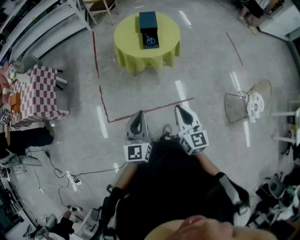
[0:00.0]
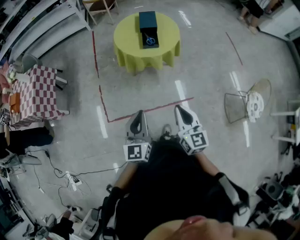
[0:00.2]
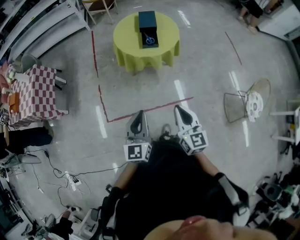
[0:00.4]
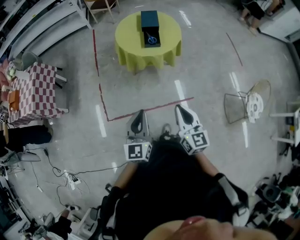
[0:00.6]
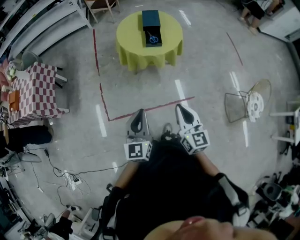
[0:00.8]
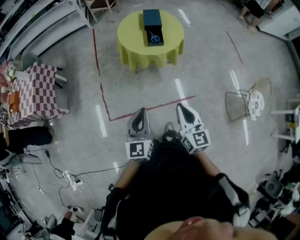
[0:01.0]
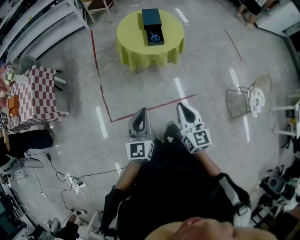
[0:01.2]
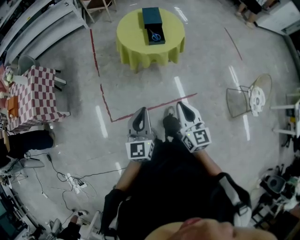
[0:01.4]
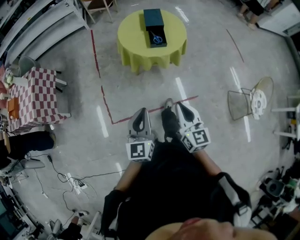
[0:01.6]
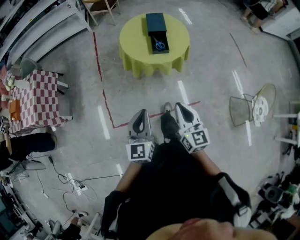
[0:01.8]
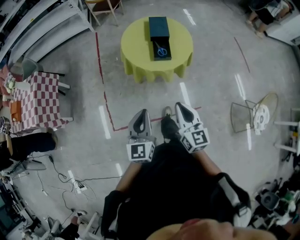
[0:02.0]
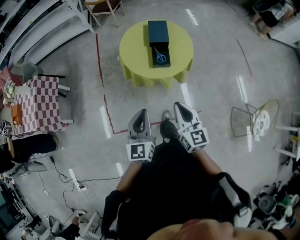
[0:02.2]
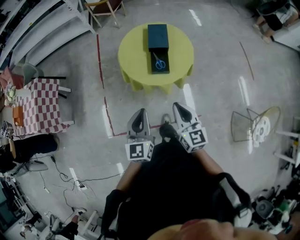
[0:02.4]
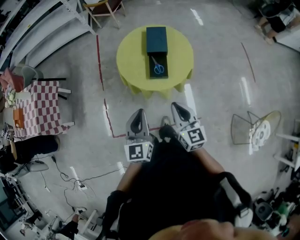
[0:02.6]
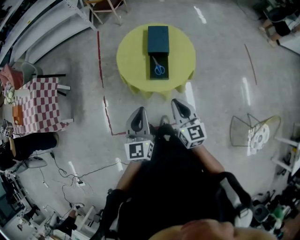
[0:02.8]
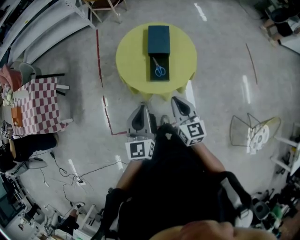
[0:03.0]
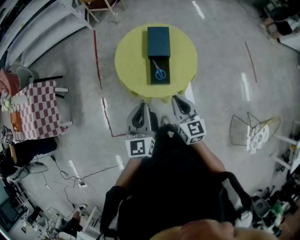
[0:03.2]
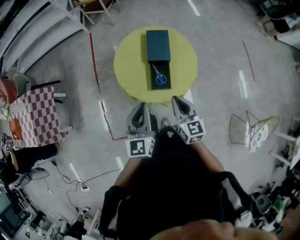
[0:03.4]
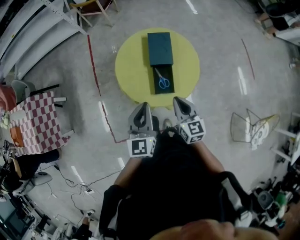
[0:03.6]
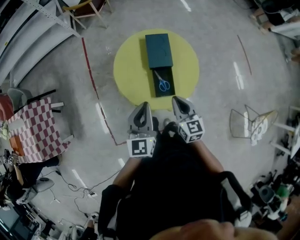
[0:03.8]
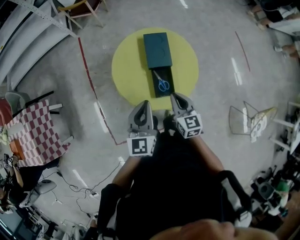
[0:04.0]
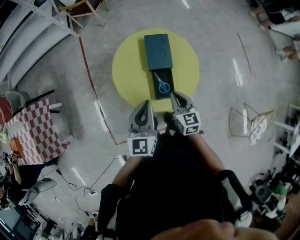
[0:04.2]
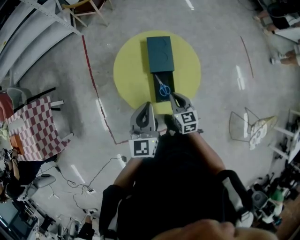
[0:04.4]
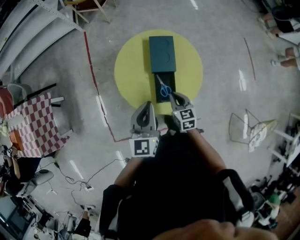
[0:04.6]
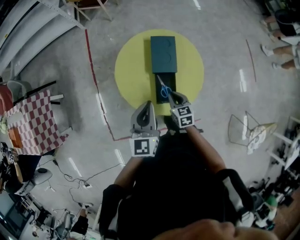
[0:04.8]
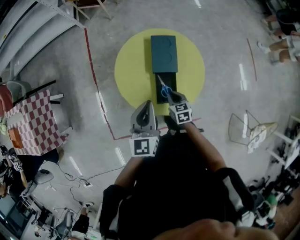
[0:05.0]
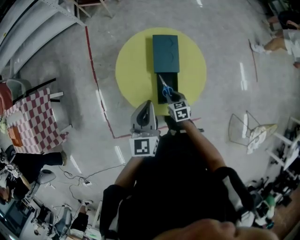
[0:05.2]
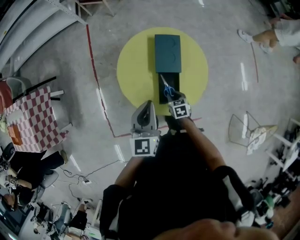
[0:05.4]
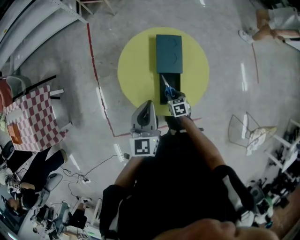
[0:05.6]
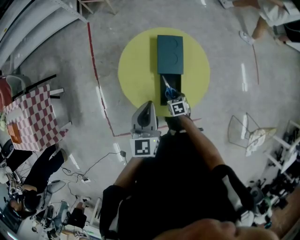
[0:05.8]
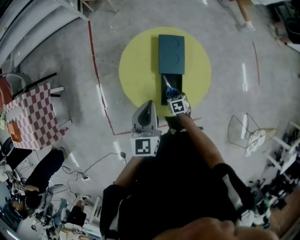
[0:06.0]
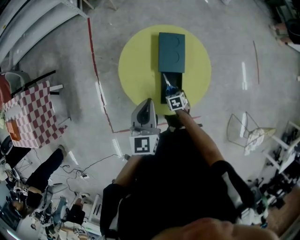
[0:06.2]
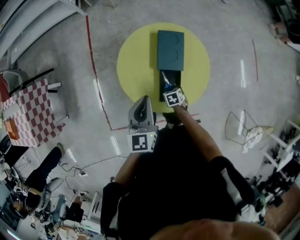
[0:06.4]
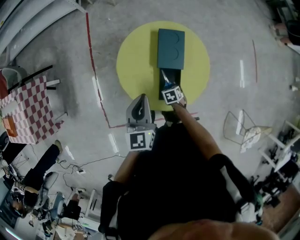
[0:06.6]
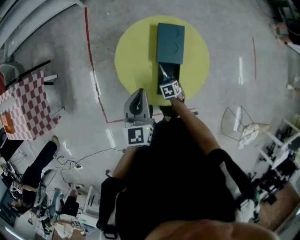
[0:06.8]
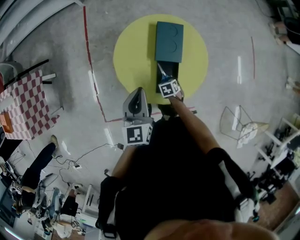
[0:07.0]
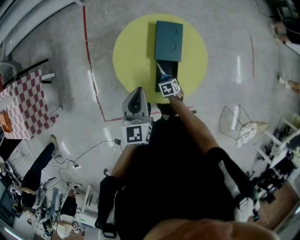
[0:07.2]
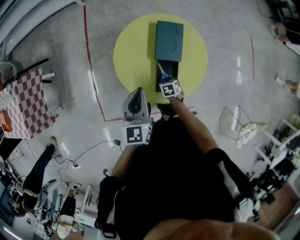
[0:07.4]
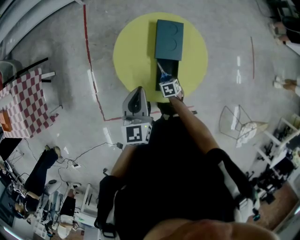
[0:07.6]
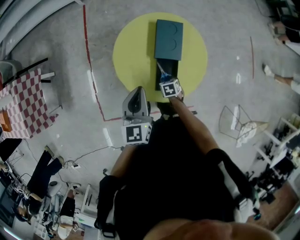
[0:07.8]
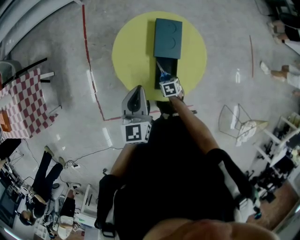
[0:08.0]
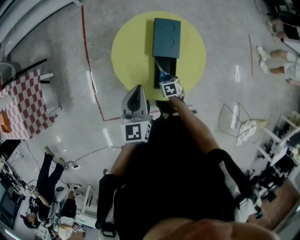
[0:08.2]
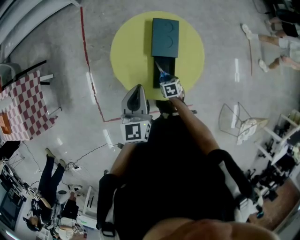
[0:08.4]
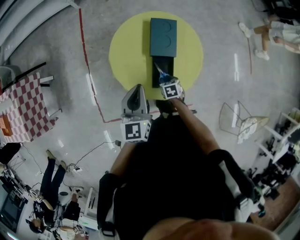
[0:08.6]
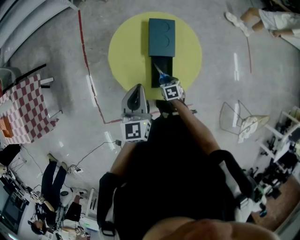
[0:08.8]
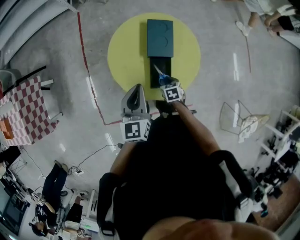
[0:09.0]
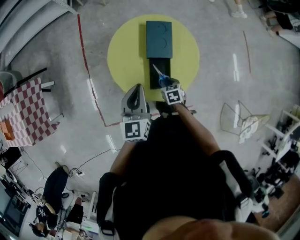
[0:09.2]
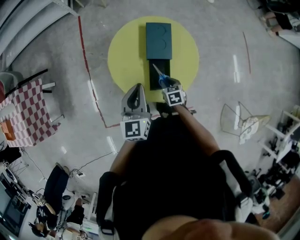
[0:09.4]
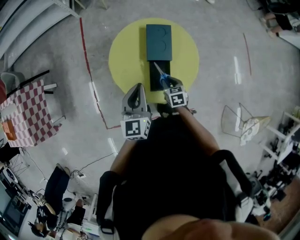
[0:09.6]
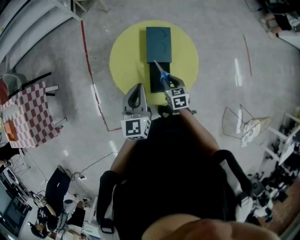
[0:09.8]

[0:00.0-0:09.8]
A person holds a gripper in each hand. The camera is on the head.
0:00.0 to 0:01.4: Both grippers travel together to the left, about 5 cm.
0:01.4 to 0:02.8: Both grippers travel together forward, approximately 35 cm.
0:02.8 to 0:04.2: The left gripper goes about 20 cm forward. The right gripper moves forward and downward, about 20 cm.
0:04.2 to 0:05.6: The right gripper shifts approximately 20 cm downward, and tilts its fingers some 40 degrees downward. The left gripper shifts by about 5 cm.
0:05.6 to 0:08.4: The grippers move only a little.
0:08.4 to 0:09.8: The right gripper heads upward, covering about 15 cm, and changes its angle by some 20 degrees.

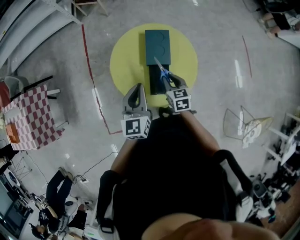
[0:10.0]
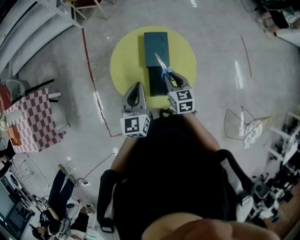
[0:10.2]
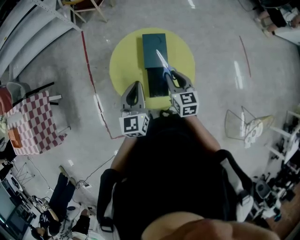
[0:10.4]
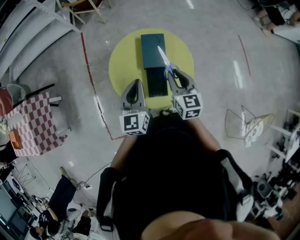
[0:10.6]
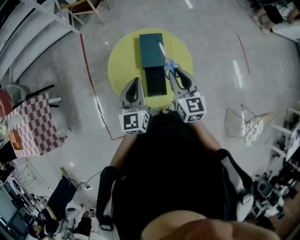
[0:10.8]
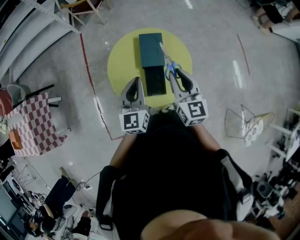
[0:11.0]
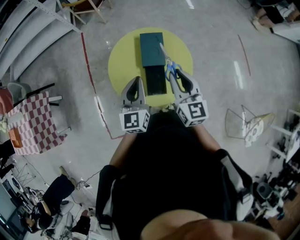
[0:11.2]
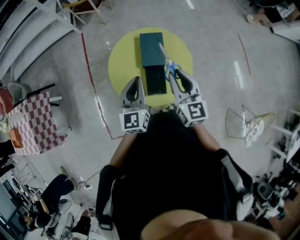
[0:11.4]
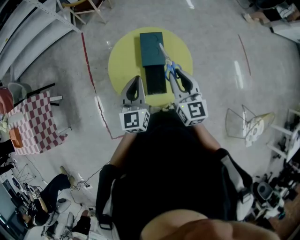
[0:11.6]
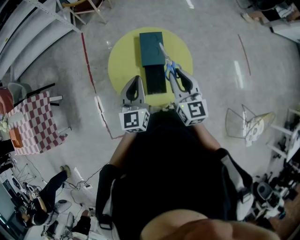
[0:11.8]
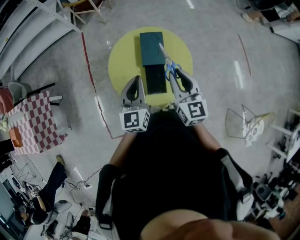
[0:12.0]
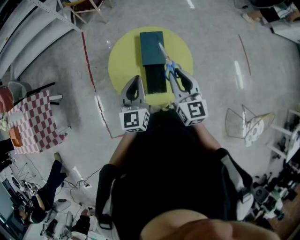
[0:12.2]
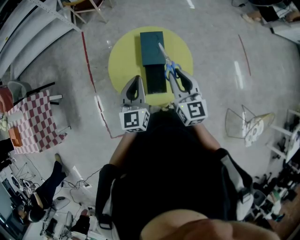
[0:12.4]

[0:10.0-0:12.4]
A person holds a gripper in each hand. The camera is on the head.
0:10.0 to 0:11.2: The right gripper shifts about 20 cm upward, and points its fingers approximately 30 degrees further upward.
0:11.2 to 0:12.4: Both grippers stay about where they are.

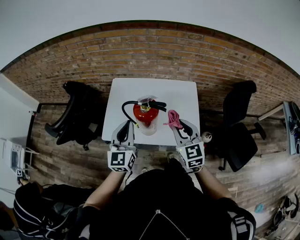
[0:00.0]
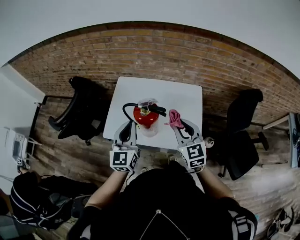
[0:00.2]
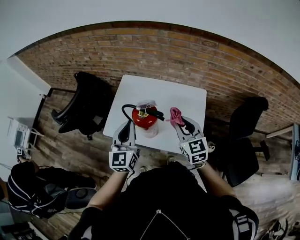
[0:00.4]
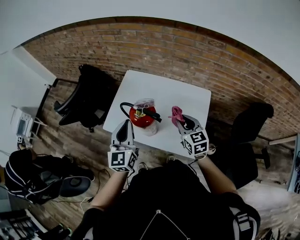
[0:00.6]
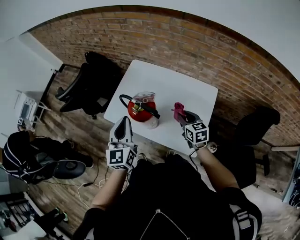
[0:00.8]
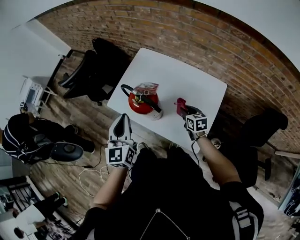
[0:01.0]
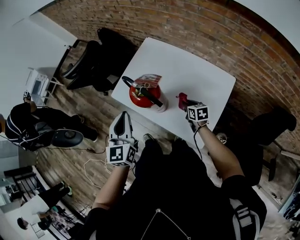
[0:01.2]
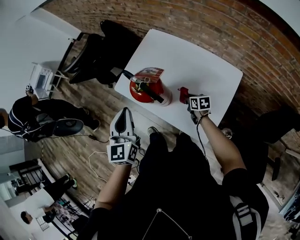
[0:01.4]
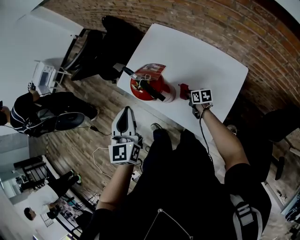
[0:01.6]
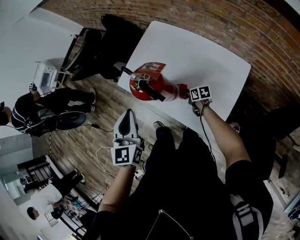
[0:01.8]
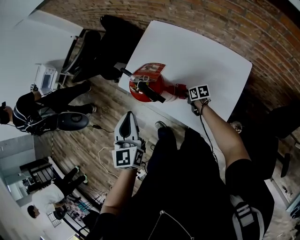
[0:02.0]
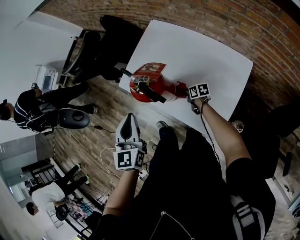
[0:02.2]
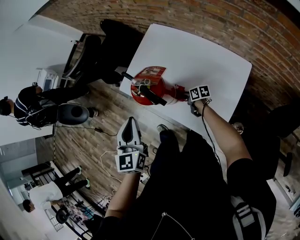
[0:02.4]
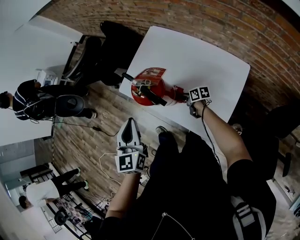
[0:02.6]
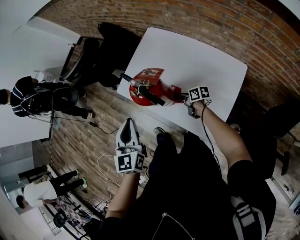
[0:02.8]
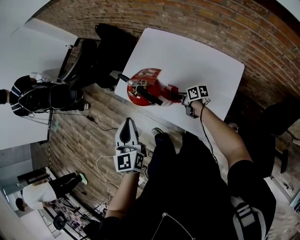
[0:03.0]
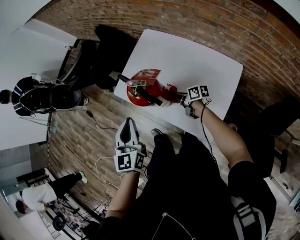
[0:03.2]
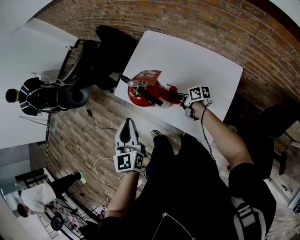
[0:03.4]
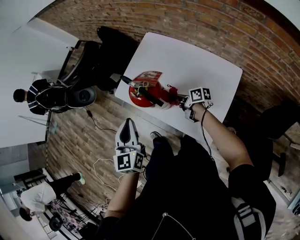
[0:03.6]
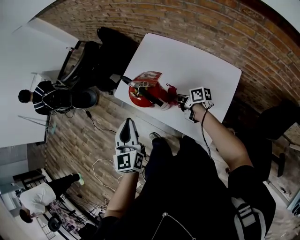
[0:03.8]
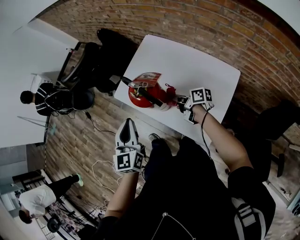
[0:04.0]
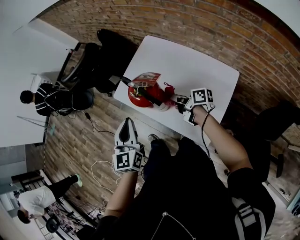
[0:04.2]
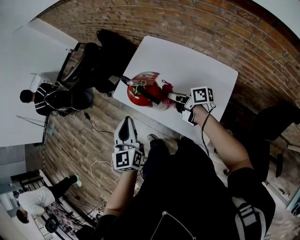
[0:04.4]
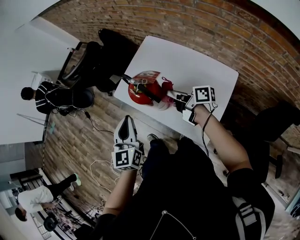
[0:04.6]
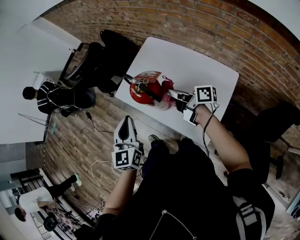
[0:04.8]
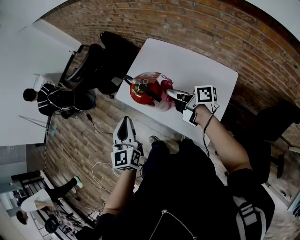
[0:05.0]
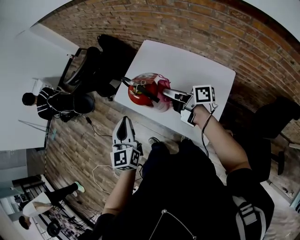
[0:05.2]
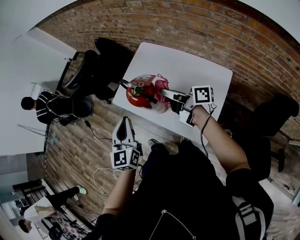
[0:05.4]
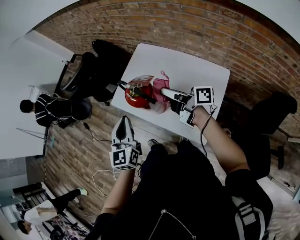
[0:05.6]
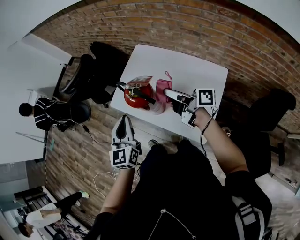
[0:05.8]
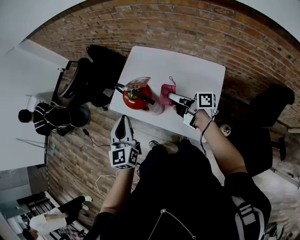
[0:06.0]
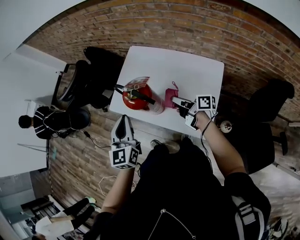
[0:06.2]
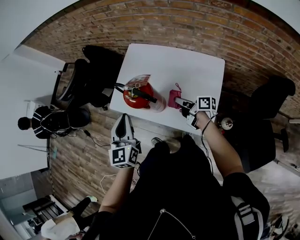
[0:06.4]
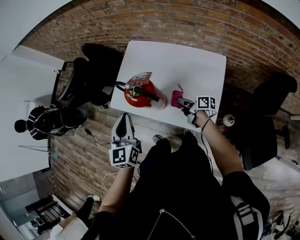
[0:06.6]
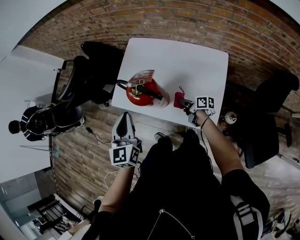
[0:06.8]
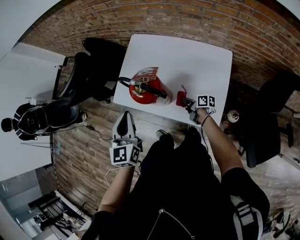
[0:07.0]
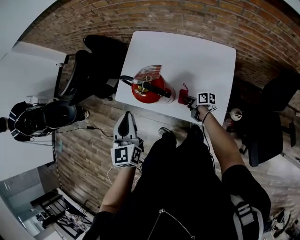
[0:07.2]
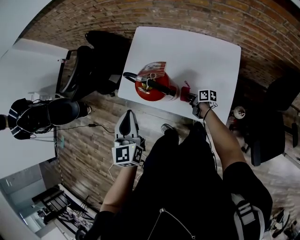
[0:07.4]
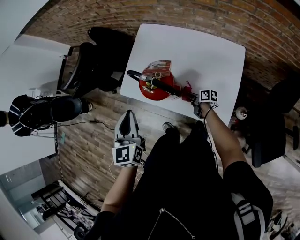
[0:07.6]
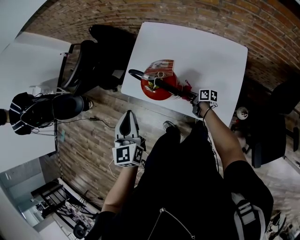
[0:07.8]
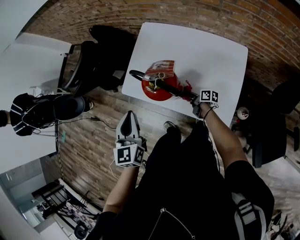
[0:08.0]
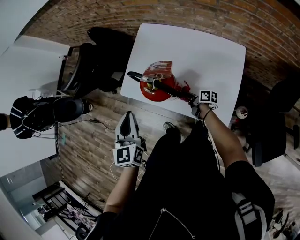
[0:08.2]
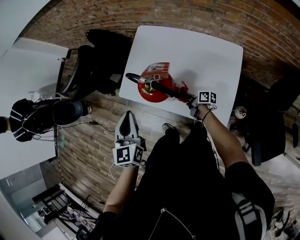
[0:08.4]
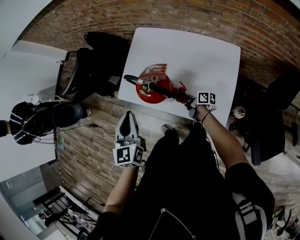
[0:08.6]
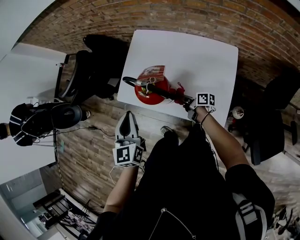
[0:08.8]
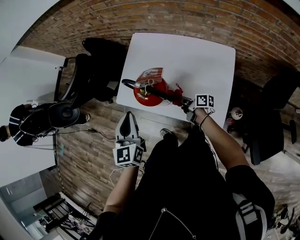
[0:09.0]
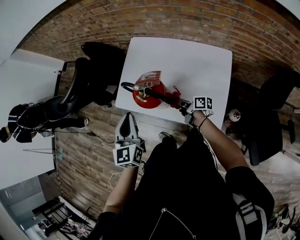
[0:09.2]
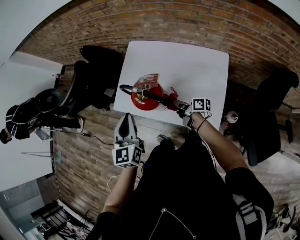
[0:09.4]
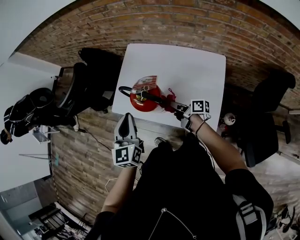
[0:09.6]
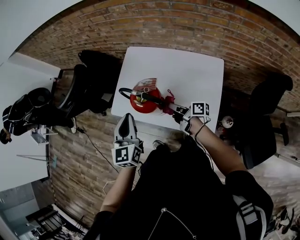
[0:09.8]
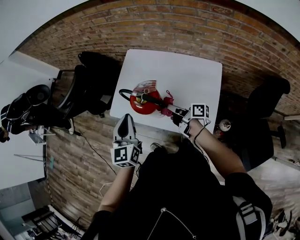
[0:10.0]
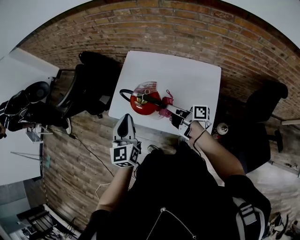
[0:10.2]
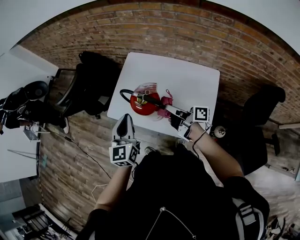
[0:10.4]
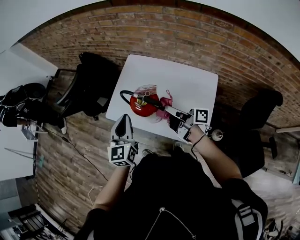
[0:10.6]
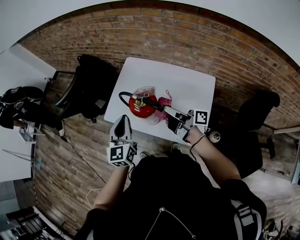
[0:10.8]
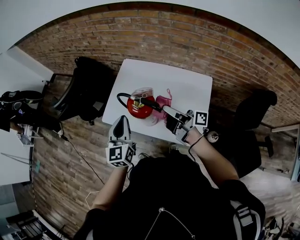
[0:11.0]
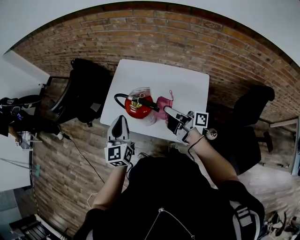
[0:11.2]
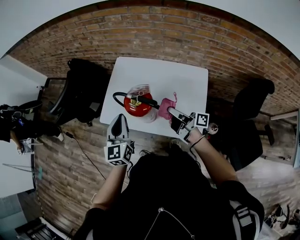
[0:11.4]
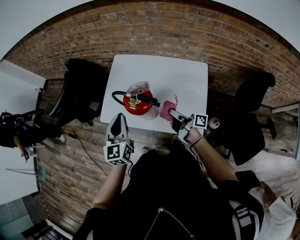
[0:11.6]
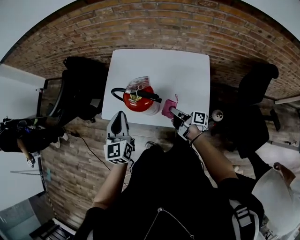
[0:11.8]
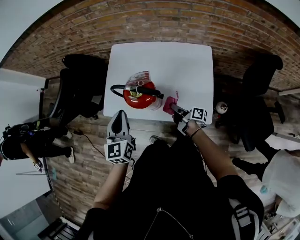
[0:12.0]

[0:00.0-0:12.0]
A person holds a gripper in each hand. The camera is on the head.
0:00.0 to 0:01.6: The left gripper travels downward by roughly 5 cm, and rotates about 40 degrees.
0:06.0 to 0:07.6: The left gripper ends up about 10 cm from where it was.
